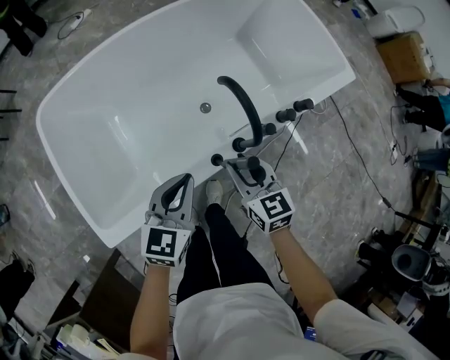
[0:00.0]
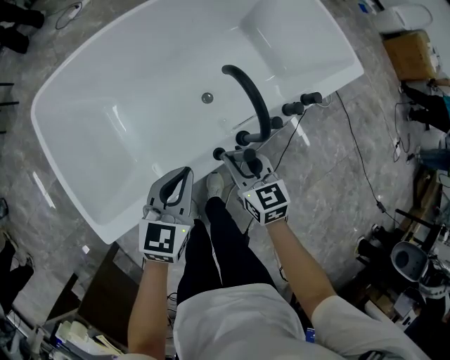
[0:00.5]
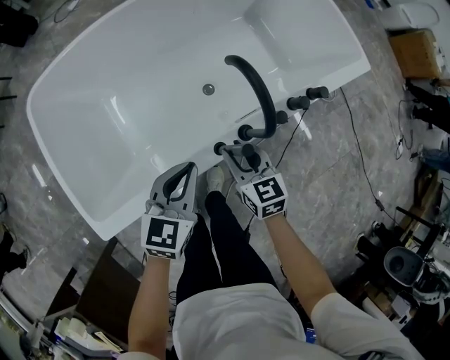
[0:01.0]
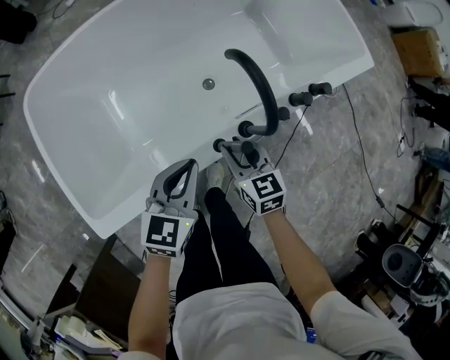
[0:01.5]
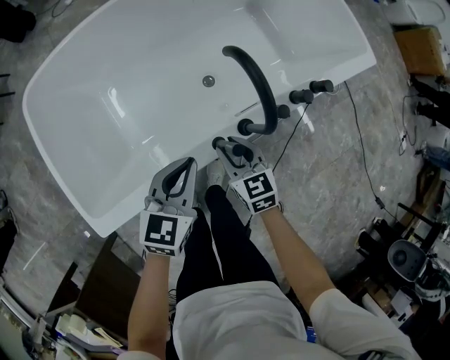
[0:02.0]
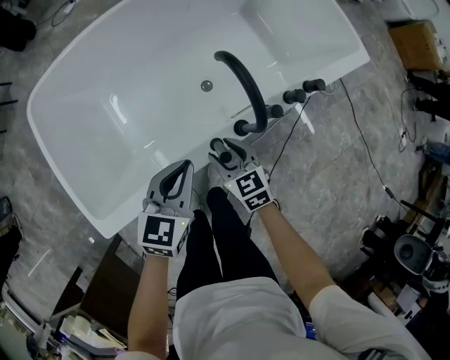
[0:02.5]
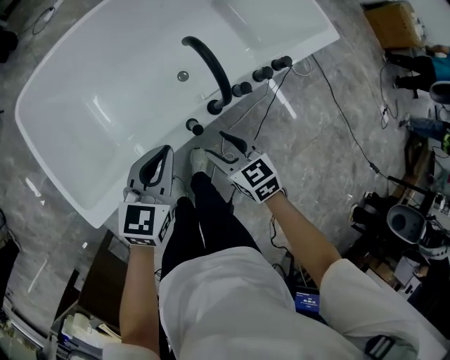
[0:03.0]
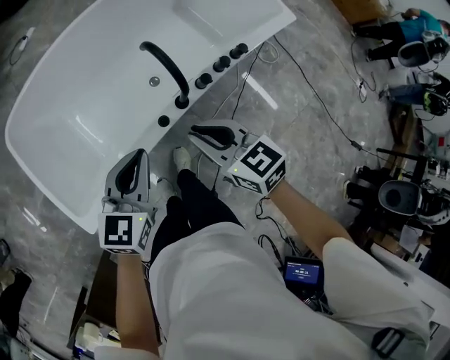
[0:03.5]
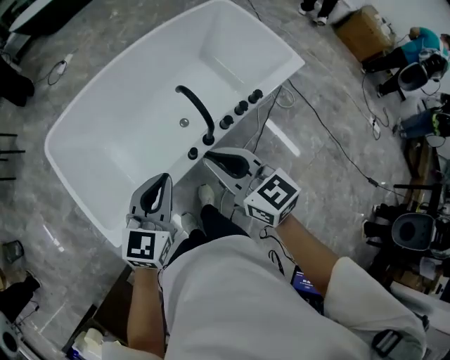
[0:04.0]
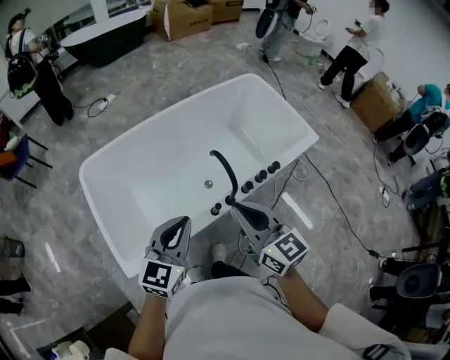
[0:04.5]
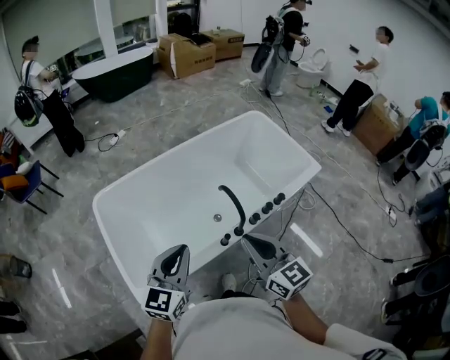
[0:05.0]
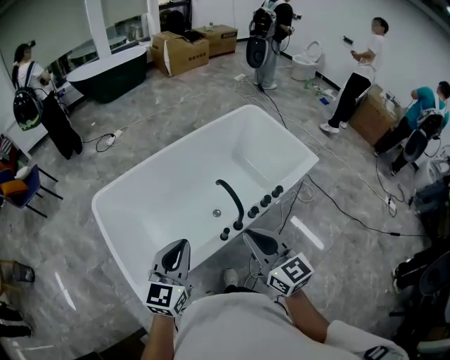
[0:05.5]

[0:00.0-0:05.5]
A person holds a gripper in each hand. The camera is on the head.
0:00.0 to 0:02.0: The left gripper heads downward, covering approximately 5 cm, while the right gripper goes roughly 10 cm downward.
0:02.0 to 0:03.5: The left gripper heads upward, covering about 15 cm; the right gripper goes roughly 25 cm upward, and closes up.
0:03.5 to 0:05.5: The right gripper shifts about 20 cm upward, and changes its angle by roughly 30 degrees. Meanwhile the left gripper moves upward and to the left, approximately 20 cm.

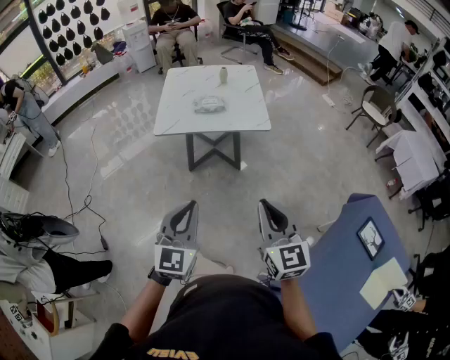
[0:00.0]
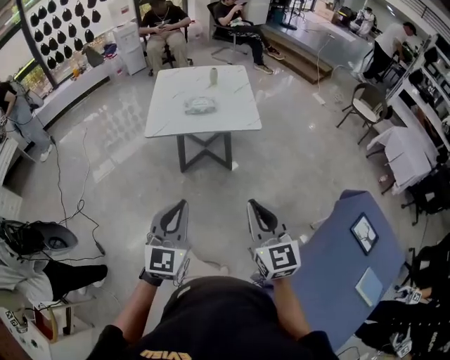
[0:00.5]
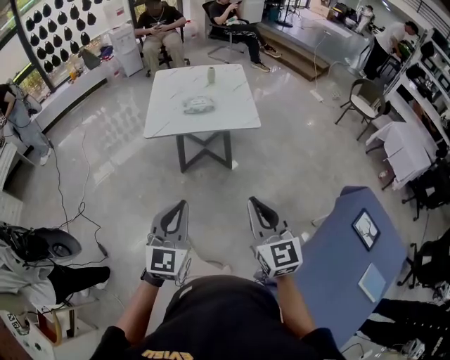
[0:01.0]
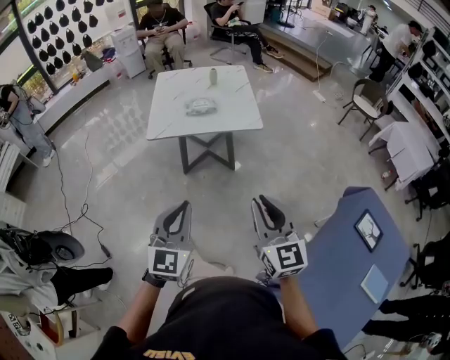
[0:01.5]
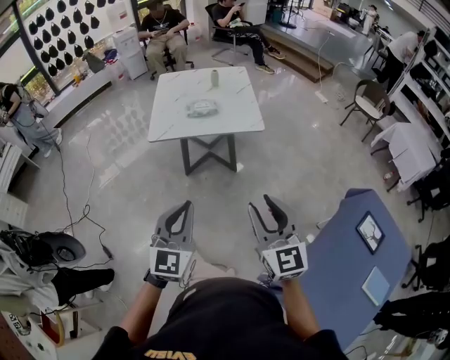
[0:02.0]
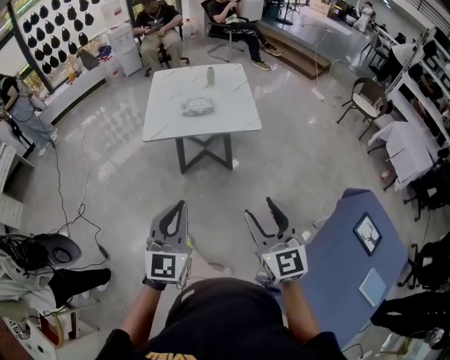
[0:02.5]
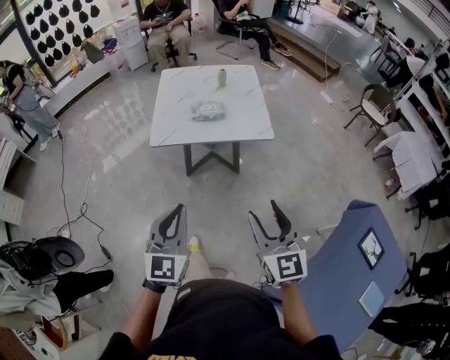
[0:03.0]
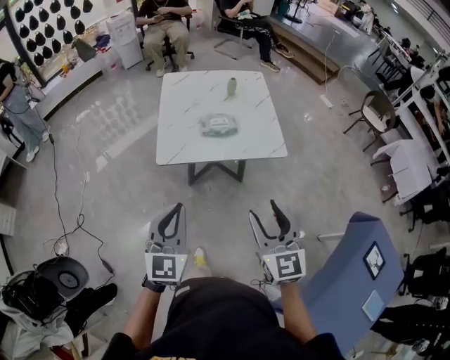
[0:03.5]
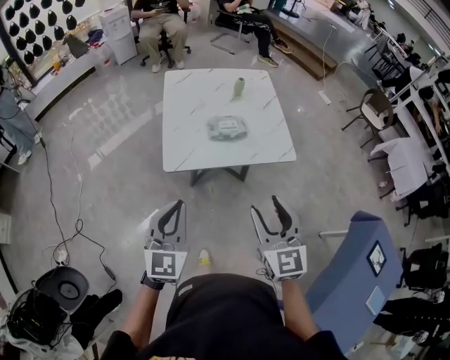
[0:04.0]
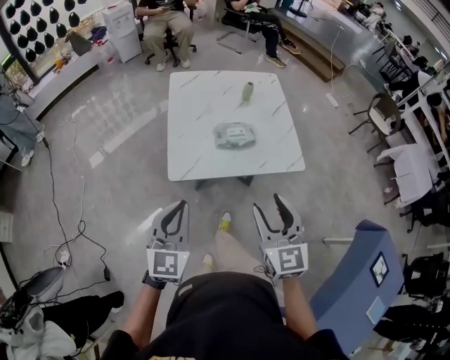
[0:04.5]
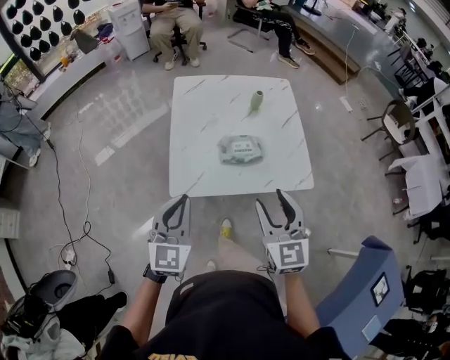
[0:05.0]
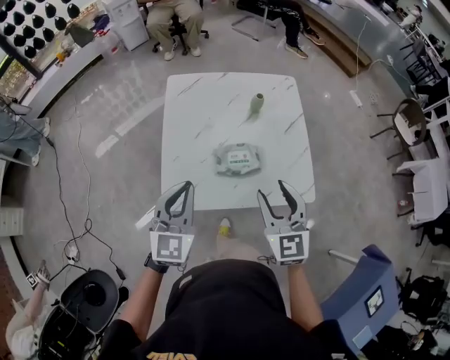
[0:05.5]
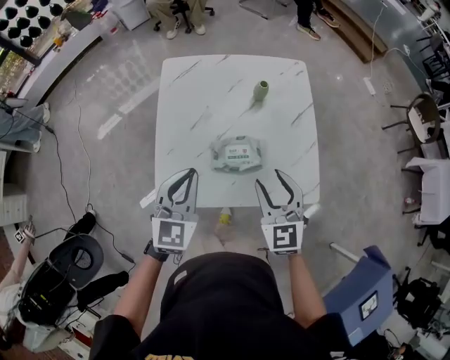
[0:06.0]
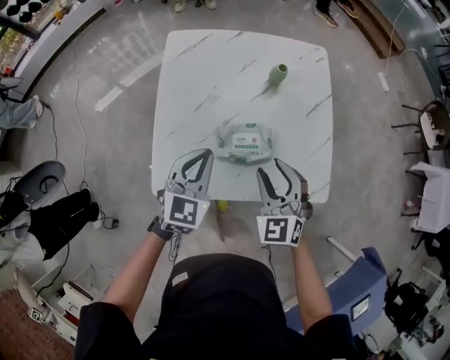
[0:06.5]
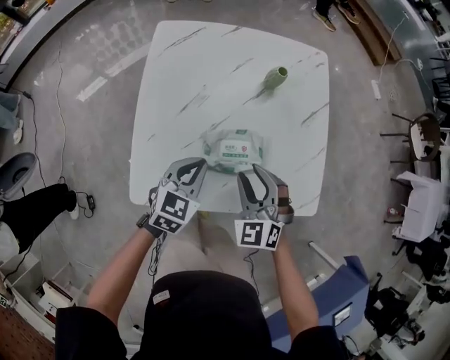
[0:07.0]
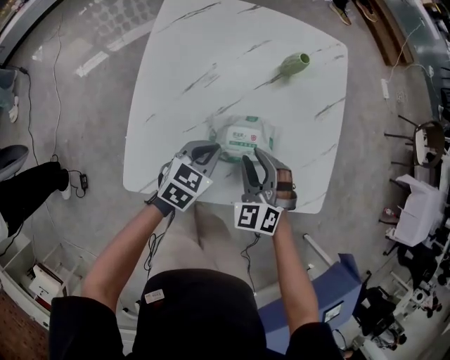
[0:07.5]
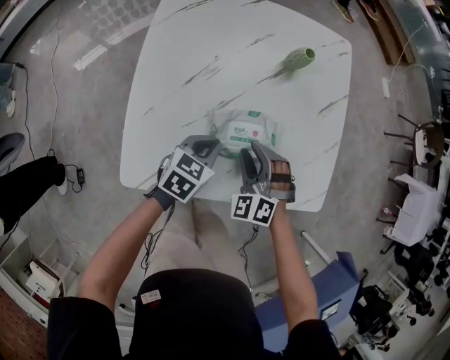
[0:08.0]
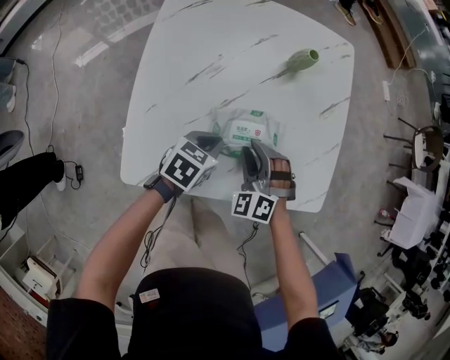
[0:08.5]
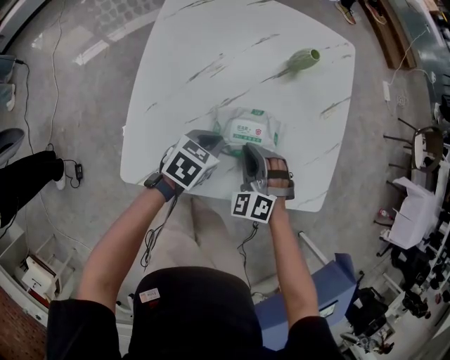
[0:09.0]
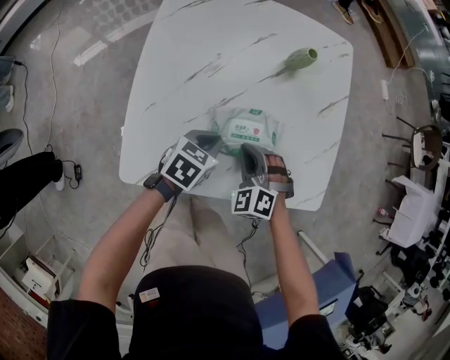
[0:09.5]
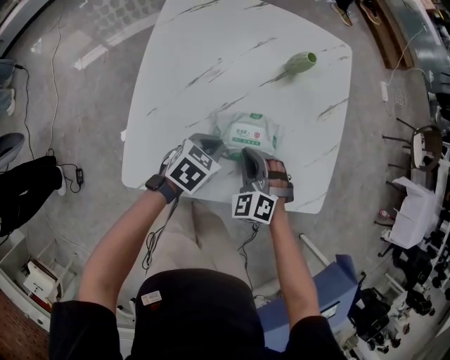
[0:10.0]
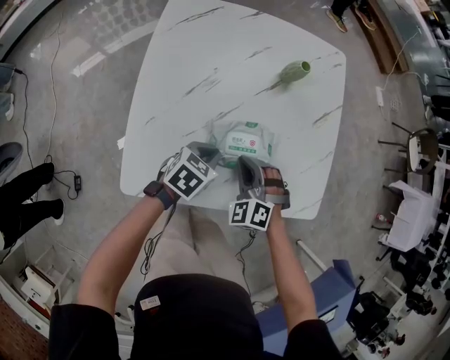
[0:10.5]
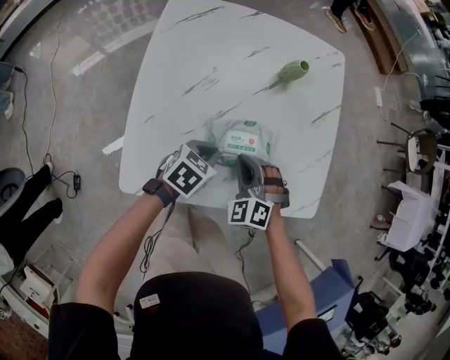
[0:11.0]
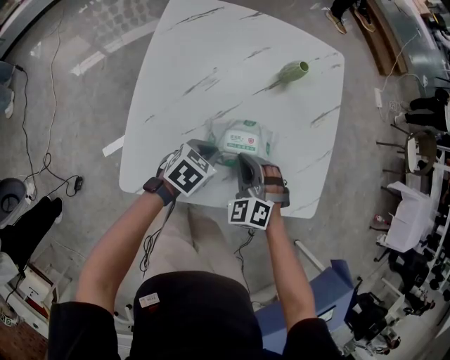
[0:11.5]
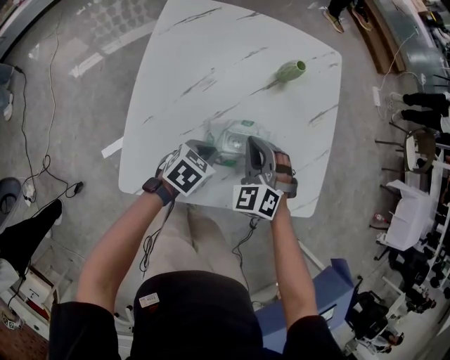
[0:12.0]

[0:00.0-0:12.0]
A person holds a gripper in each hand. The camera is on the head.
0:00.0 to 0:02.0: The right gripper opens up.
0:02.0 to 0:04.0: Both grippers travel together forward and to the left, approximately 40 cm.
0:04.0 to 0:06.0: The grippers both shift forward by some 40 cm.
0:06.0 to 0:08.0: The two grippers go approximately 25 cm downward. The left gripper turns by approximately 40 degrees. The right gripper rotates some 40 degrees.
0:08.0 to 0:10.0: The right gripper closes up.
0:10.0 to 0:12.0: The right gripper moves upward and forward, approximately 10 cm.

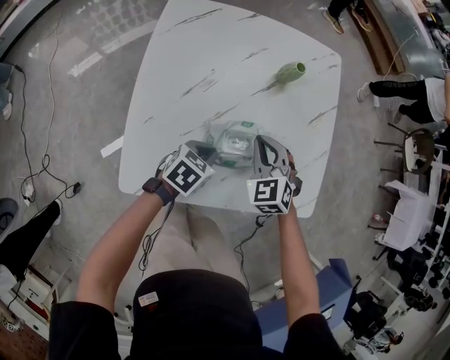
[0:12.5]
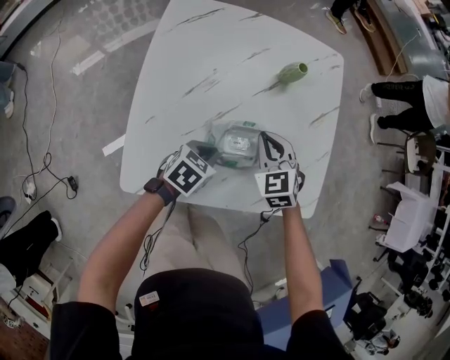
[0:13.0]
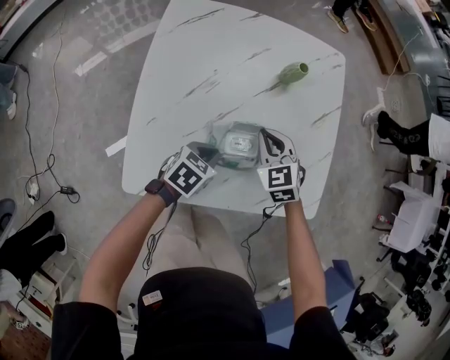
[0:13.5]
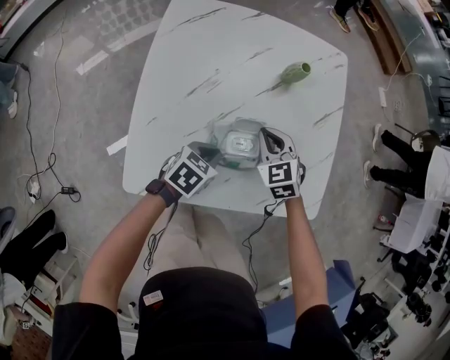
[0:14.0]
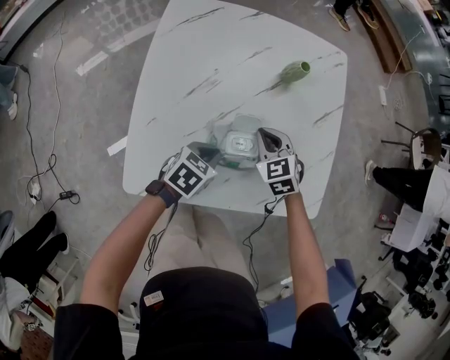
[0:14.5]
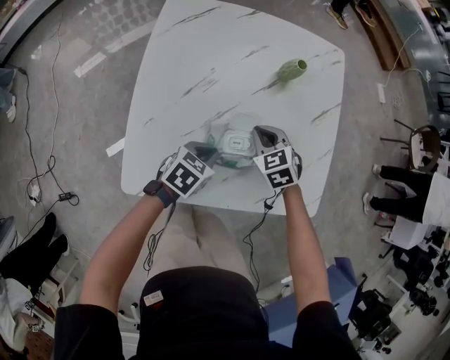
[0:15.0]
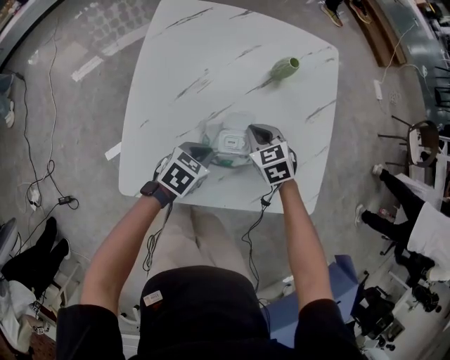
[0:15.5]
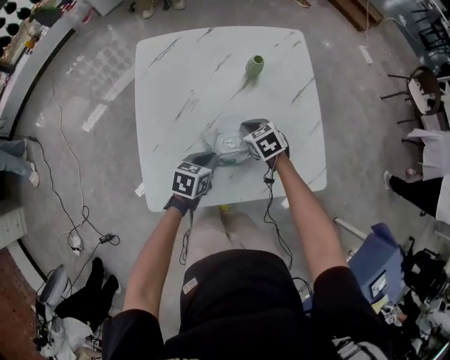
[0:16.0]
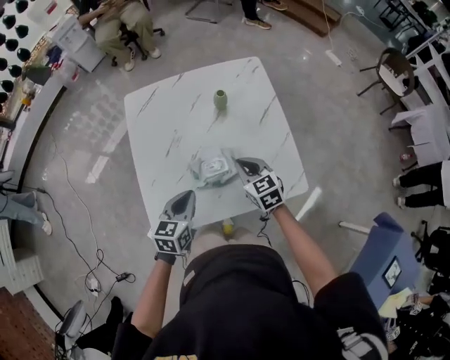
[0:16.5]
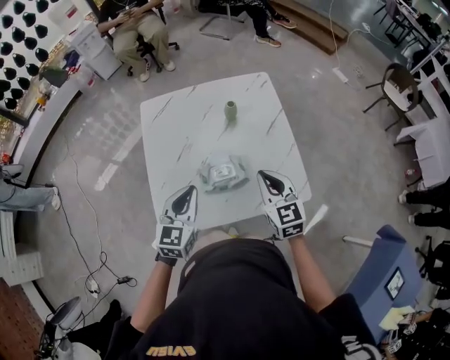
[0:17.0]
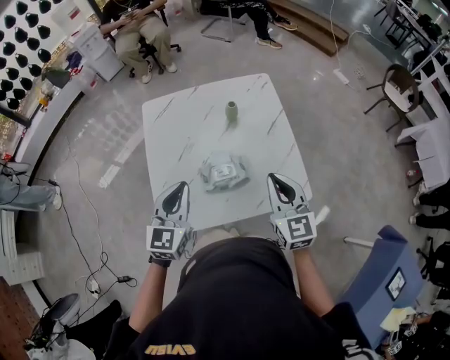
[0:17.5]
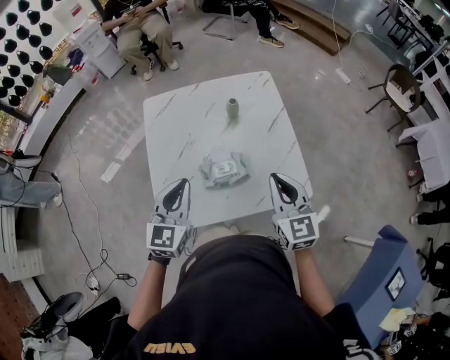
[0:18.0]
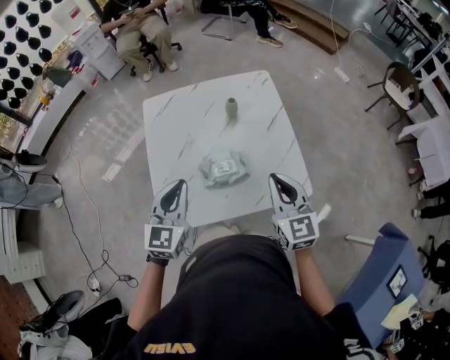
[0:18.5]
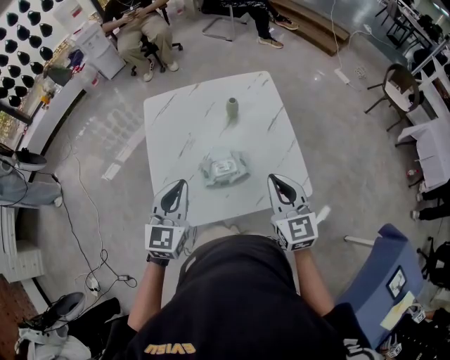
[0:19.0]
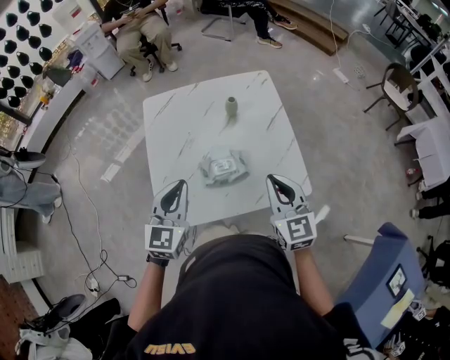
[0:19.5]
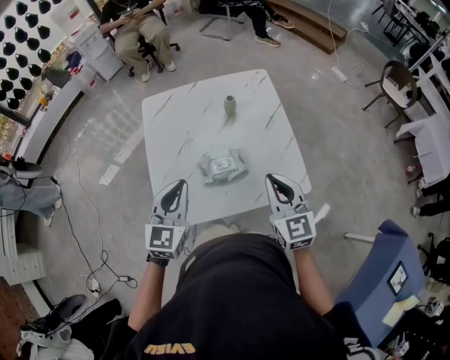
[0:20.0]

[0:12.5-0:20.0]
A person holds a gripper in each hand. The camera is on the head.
0:12.5 to 0:14.5: The right gripper shifts by some 5 cm.
0:14.5 to 0:16.5: The right gripper heads upward, backward and to the right, covering some 15 cm, and swivels approximately 30 degrees, while the left gripper travels upward by some 15 cm, and rotates some 20 degrees.
0:16.5 to 0:18.0: The right gripper travels upward and backward by some 20 cm, and rotates about 30 degrees; the left gripper shifts approximately 15 cm upward, and changes its angle by about 30 degrees.
0:18.0 to 0:20.0: There are only small adjustments of the grippers.

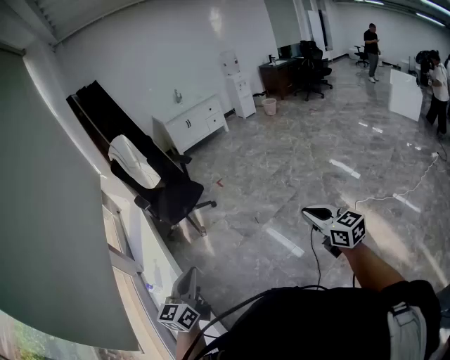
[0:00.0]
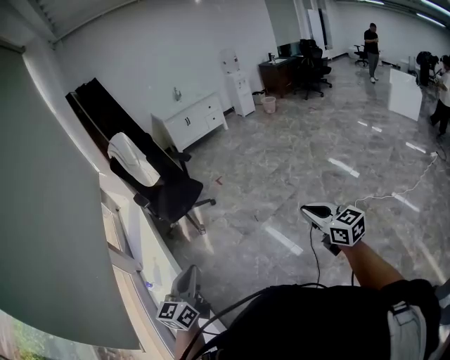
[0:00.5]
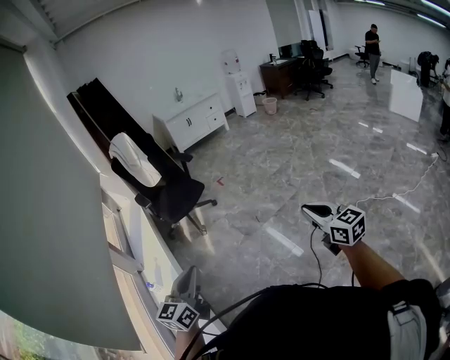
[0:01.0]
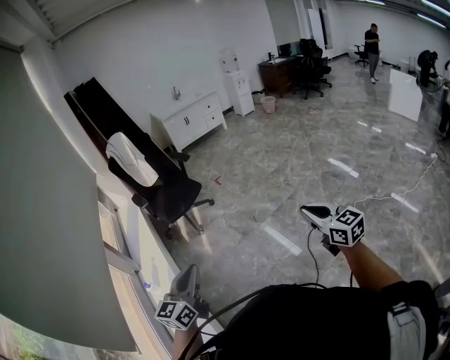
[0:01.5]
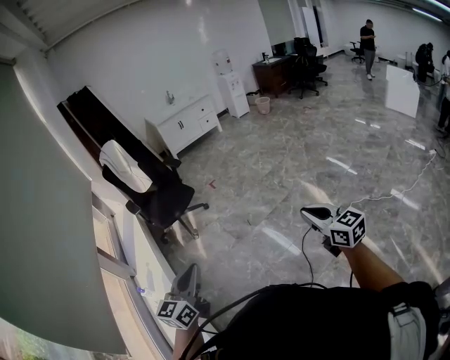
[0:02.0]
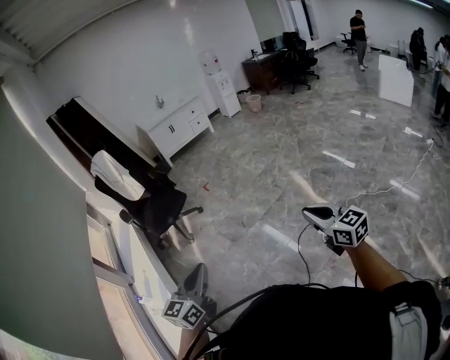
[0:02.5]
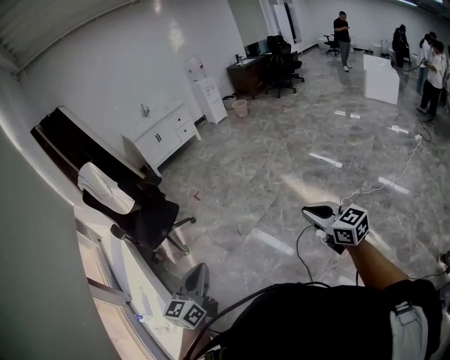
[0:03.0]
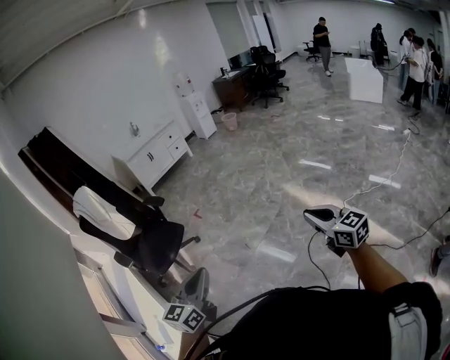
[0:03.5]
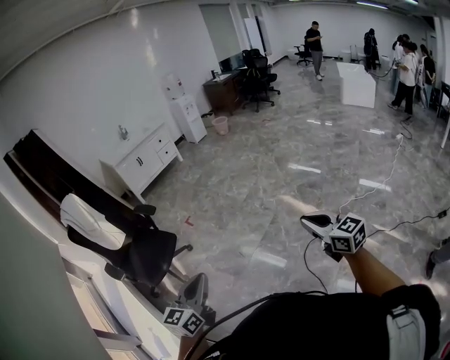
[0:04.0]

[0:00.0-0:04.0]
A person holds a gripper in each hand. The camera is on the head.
0:00.0 to 0:02.0: The two grippers go some 10 cm to the right.
0:02.0 to 0:04.0: The two grippers go approximately 25 cm forward. The left gripper swivels roughly 20 degrees.
